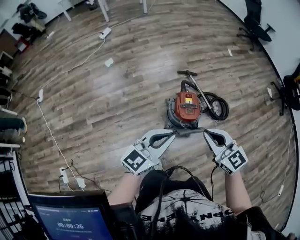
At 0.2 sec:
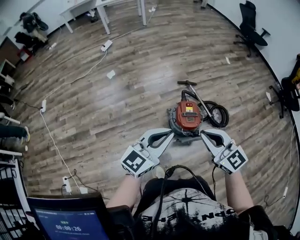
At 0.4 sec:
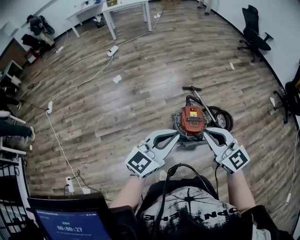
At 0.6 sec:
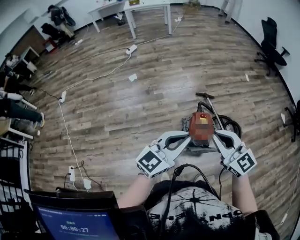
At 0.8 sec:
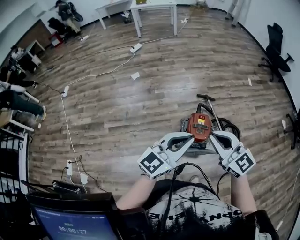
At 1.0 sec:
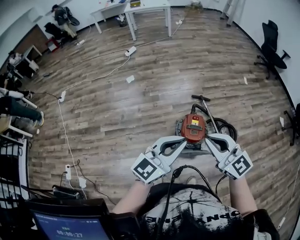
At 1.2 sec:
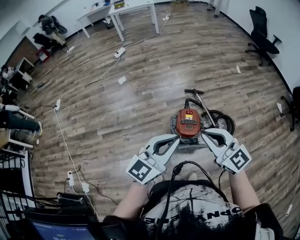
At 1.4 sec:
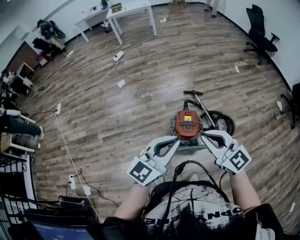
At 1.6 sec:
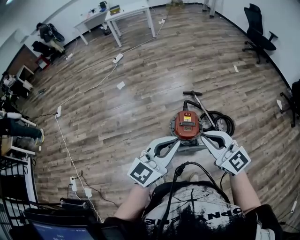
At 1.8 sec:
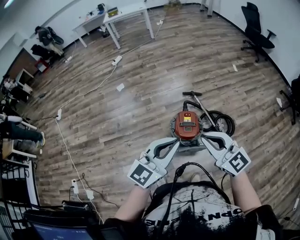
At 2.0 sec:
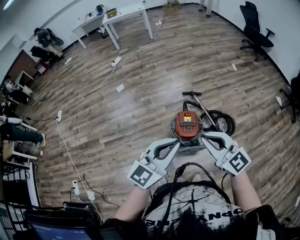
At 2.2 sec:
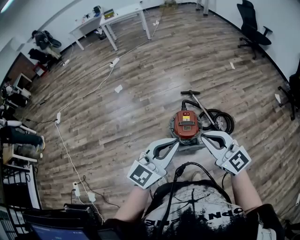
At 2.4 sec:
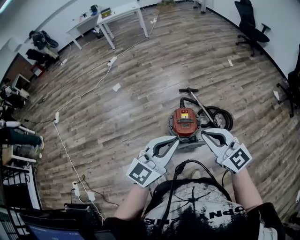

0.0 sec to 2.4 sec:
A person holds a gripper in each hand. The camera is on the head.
0.0 sec to 1.2 sec: The left gripper shifts approximately 15 cm to the right and upward. Meanwhile the right gripper is displaced upward and to the right by roughly 10 cm.
1.2 sec to 2.4 sec: The grippers move only a little.

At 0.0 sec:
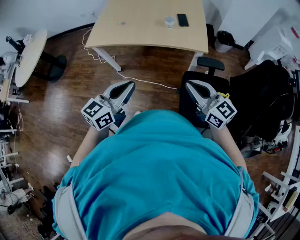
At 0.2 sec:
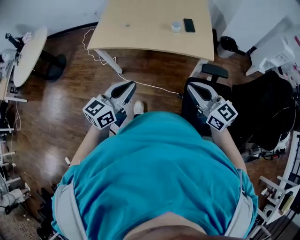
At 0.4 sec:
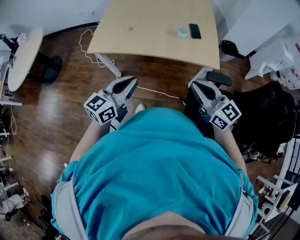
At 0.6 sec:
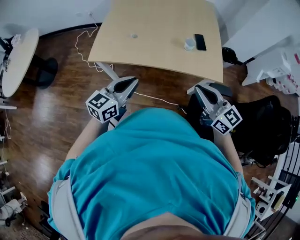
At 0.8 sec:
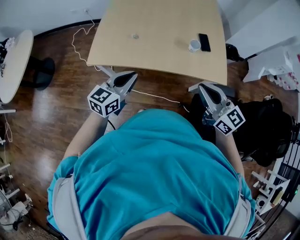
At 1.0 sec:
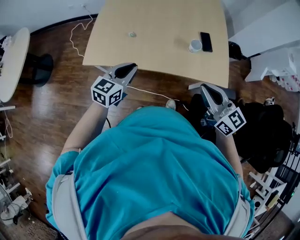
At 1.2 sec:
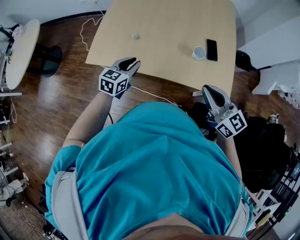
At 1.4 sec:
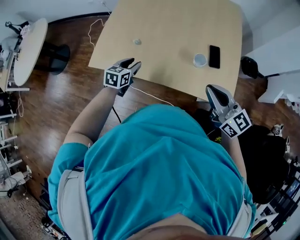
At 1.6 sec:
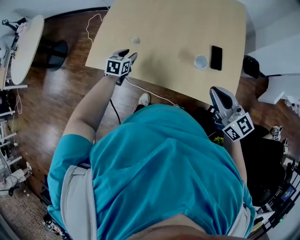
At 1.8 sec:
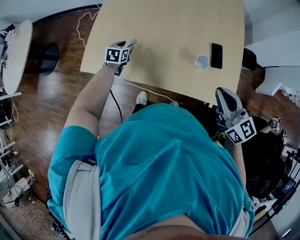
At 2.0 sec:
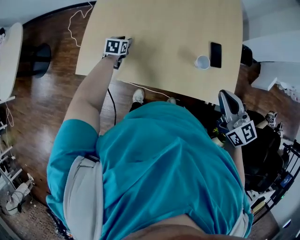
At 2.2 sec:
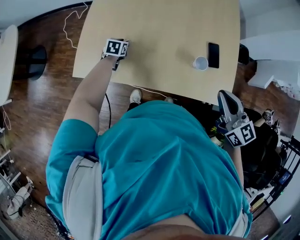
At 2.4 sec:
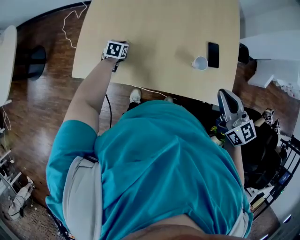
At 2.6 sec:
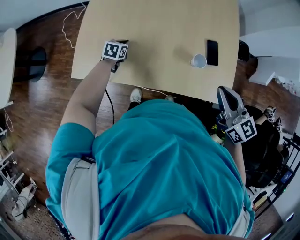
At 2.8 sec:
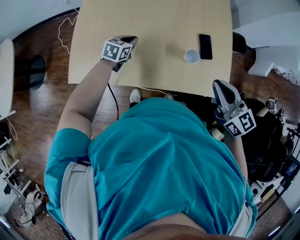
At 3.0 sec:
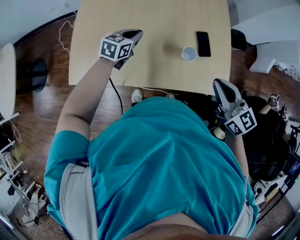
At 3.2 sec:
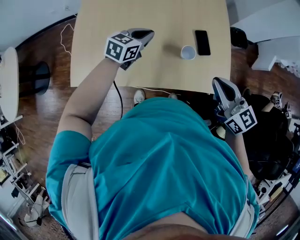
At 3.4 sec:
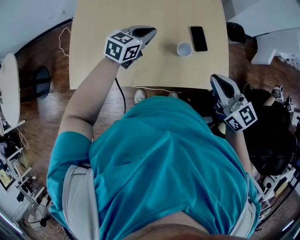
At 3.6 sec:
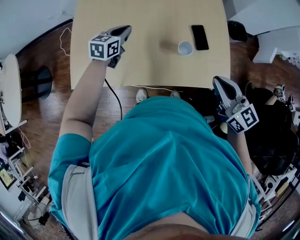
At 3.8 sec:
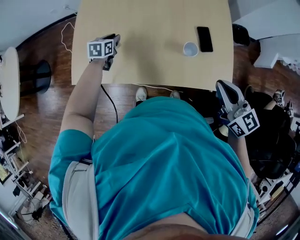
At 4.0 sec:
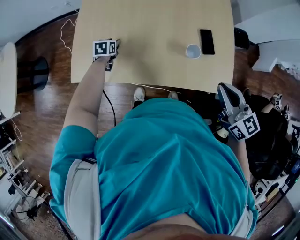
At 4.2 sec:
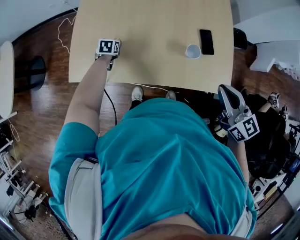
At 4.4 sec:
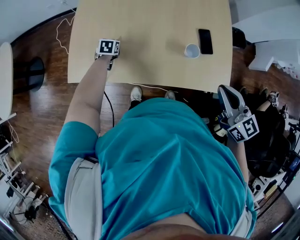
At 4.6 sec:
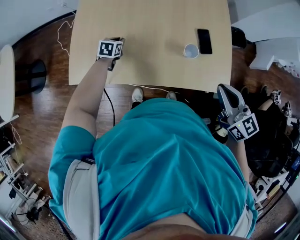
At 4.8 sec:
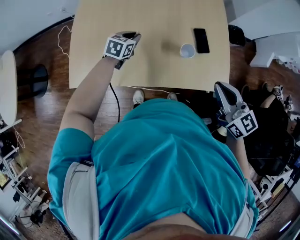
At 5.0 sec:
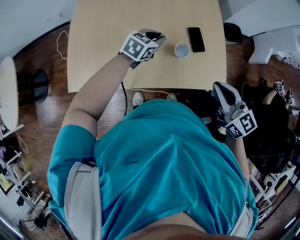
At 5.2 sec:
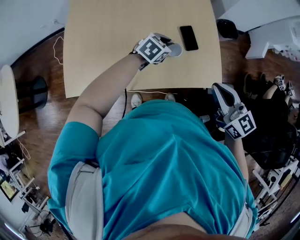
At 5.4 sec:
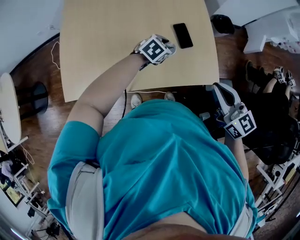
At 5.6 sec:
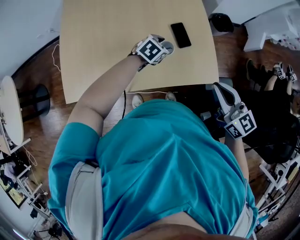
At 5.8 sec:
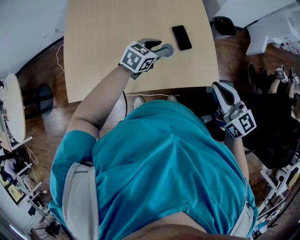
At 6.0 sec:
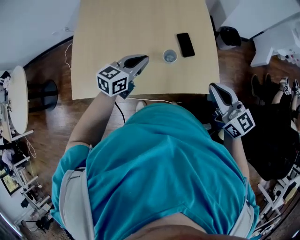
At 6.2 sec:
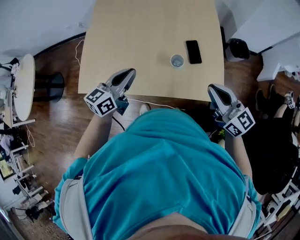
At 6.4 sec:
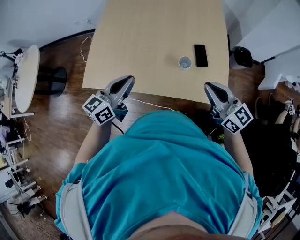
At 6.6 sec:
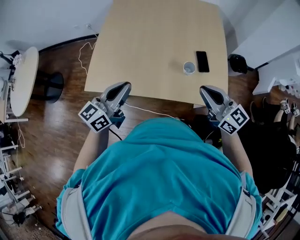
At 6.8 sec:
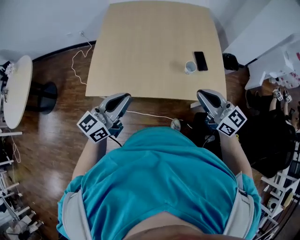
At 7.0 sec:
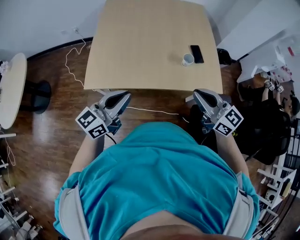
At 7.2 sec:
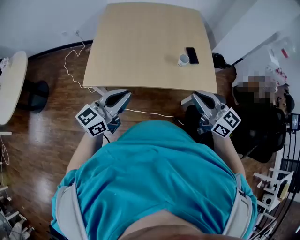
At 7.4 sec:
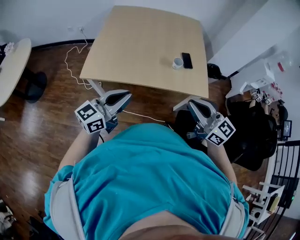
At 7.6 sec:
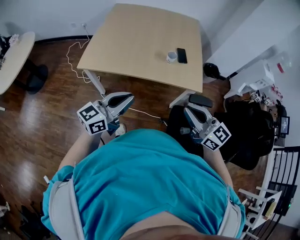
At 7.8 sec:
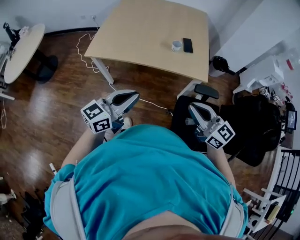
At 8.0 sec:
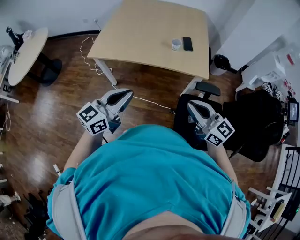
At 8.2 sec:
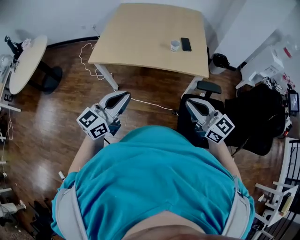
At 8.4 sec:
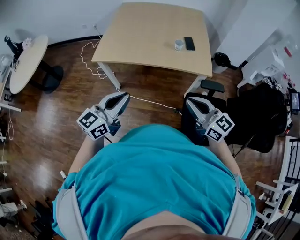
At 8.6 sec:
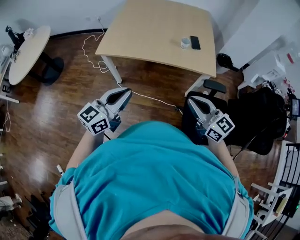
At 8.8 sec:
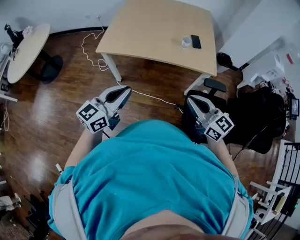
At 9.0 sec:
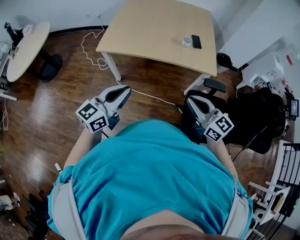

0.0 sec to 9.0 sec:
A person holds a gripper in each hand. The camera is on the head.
0.0 sec to 1.6 sec: The left gripper is displaced forward and downward by roughly 60 cm, tilts its fingers approximately 40 degrees downward, and opens up. The right gripper travels forward by some 40 cm.
1.6 sec to 3.0 sec: The left gripper shifts roughly 20 cm to the right, forward and upward, swivels roughly 30 degrees, and closes.
3.0 sec to 4.4 sec: The left gripper shifts about 25 cm downward and to the left, rotates about 30 degrees, and opens, then closes once more.
4.4 sec to 6.0 sec: The left gripper goes up and down, roughly 25 cm each way, reversing 2 times, tilts its fingers some 40 degrees upward, and opens, then closes again. The right gripper changes place by approximately 10 cm.
6.0 sec to 7.6 sec: The left gripper goes approximately 40 cm backward, and turns by approximately 30 degrees, while the right gripper travels backward and to the left by some 30 cm, and turns by approximately 20 degrees.
7.6 sec to 9.0 sec: The two grippers go about 15 cm backward and to the left.

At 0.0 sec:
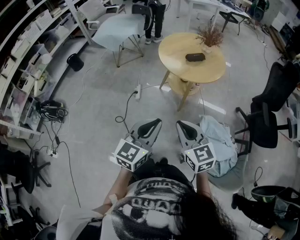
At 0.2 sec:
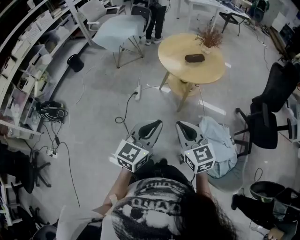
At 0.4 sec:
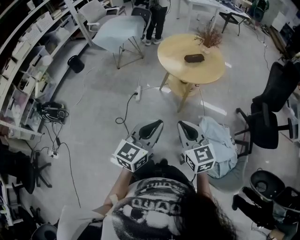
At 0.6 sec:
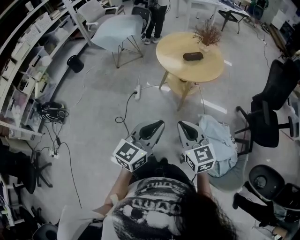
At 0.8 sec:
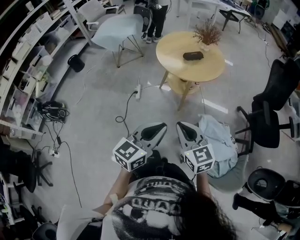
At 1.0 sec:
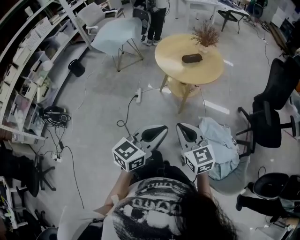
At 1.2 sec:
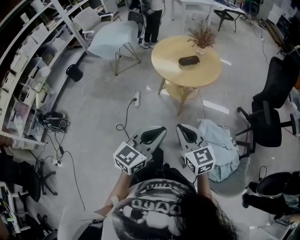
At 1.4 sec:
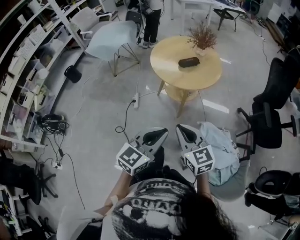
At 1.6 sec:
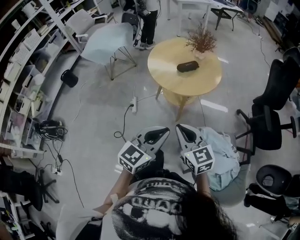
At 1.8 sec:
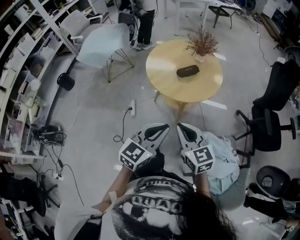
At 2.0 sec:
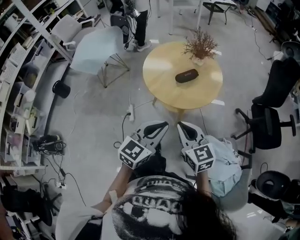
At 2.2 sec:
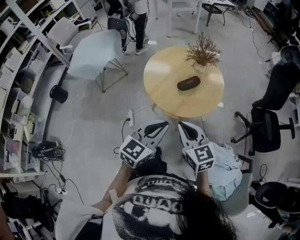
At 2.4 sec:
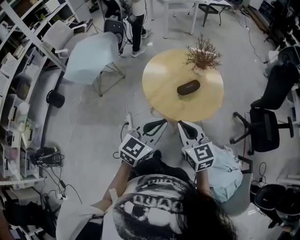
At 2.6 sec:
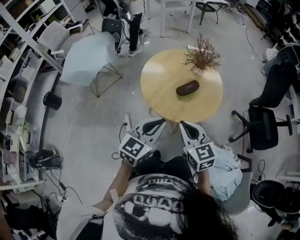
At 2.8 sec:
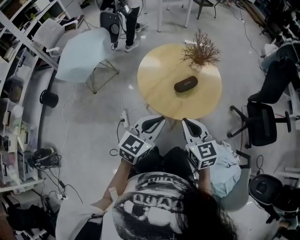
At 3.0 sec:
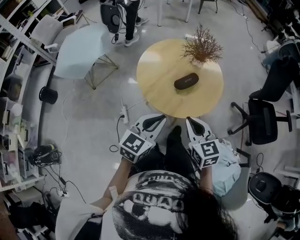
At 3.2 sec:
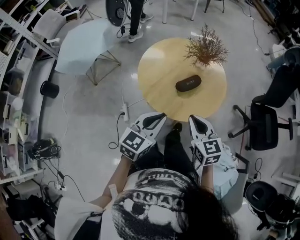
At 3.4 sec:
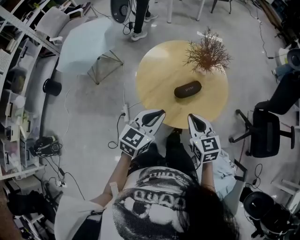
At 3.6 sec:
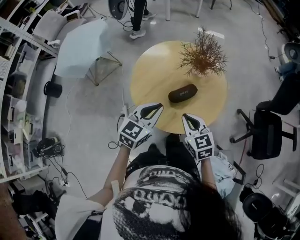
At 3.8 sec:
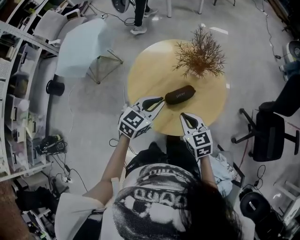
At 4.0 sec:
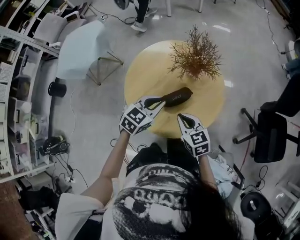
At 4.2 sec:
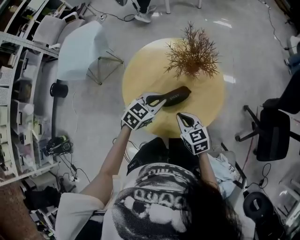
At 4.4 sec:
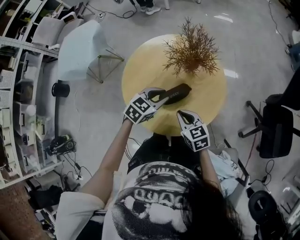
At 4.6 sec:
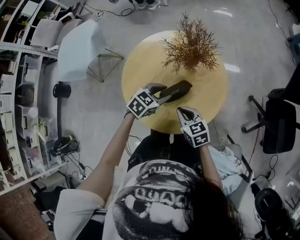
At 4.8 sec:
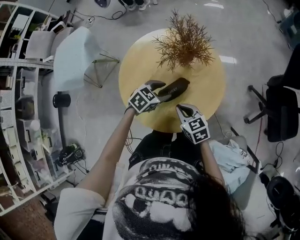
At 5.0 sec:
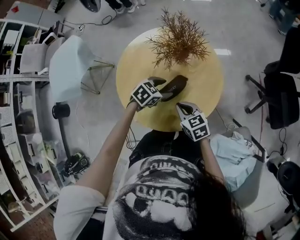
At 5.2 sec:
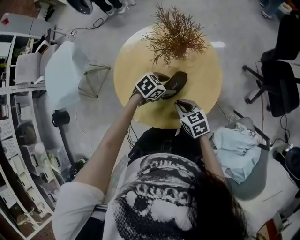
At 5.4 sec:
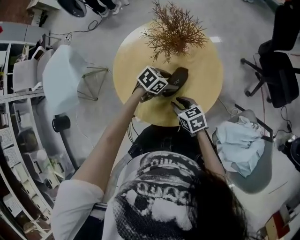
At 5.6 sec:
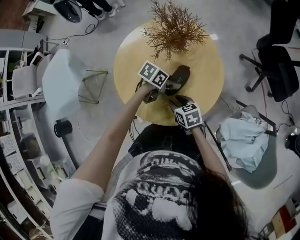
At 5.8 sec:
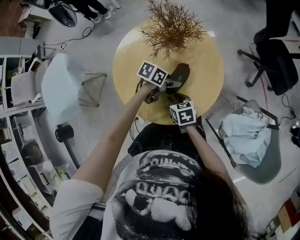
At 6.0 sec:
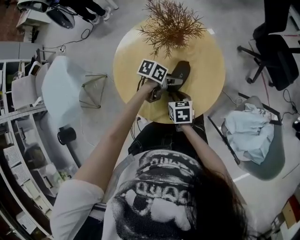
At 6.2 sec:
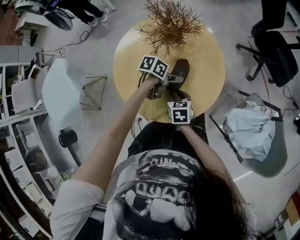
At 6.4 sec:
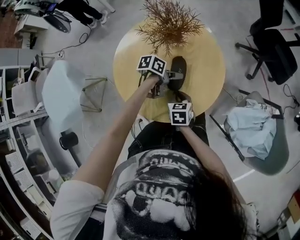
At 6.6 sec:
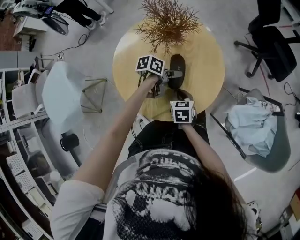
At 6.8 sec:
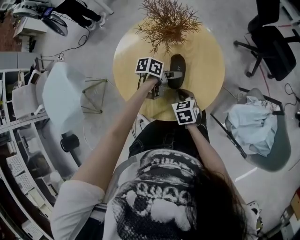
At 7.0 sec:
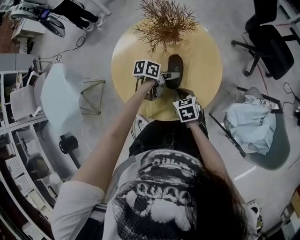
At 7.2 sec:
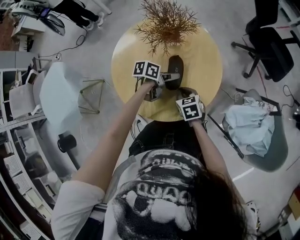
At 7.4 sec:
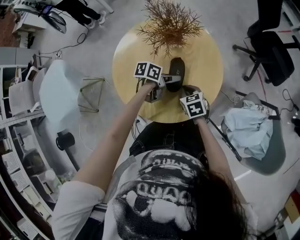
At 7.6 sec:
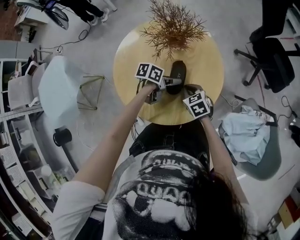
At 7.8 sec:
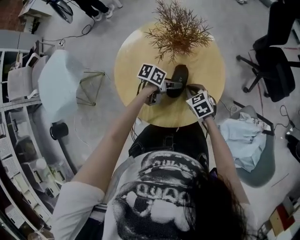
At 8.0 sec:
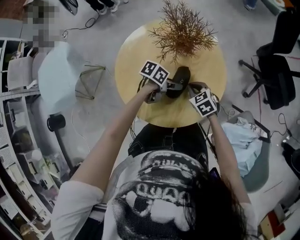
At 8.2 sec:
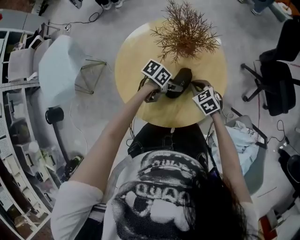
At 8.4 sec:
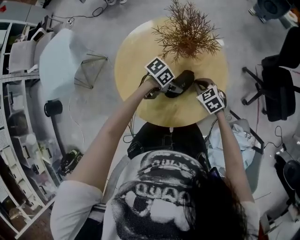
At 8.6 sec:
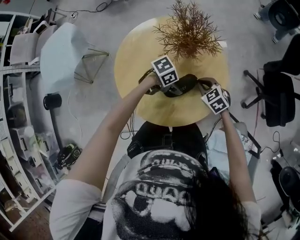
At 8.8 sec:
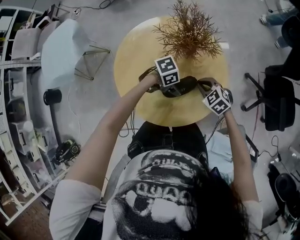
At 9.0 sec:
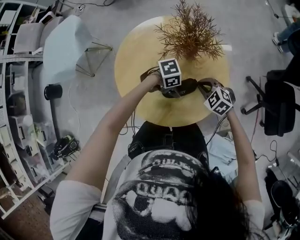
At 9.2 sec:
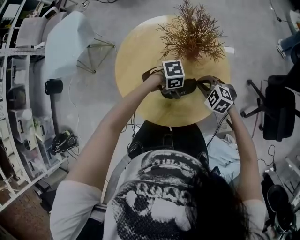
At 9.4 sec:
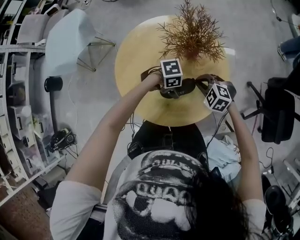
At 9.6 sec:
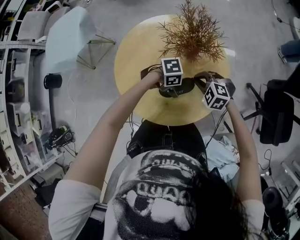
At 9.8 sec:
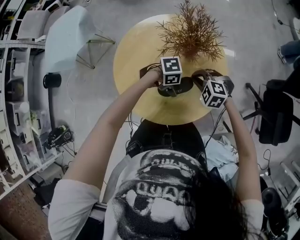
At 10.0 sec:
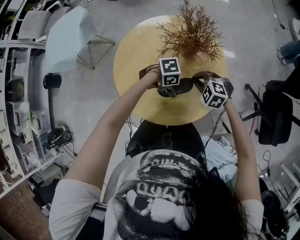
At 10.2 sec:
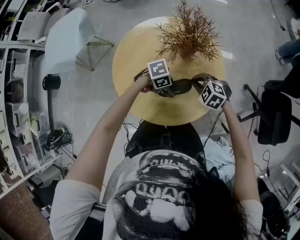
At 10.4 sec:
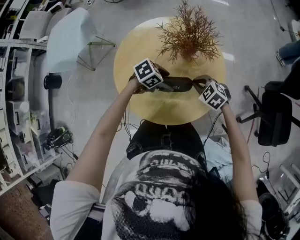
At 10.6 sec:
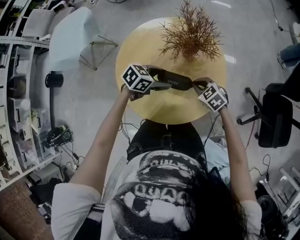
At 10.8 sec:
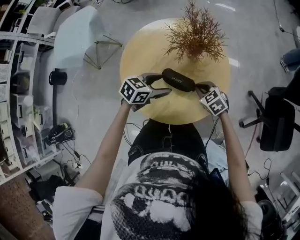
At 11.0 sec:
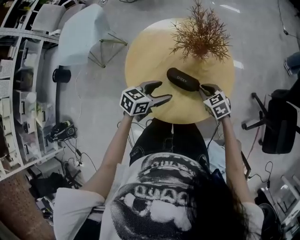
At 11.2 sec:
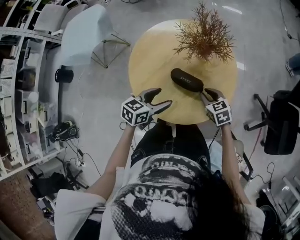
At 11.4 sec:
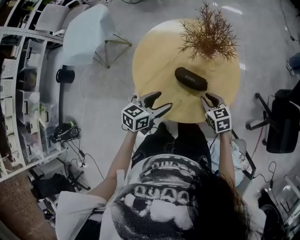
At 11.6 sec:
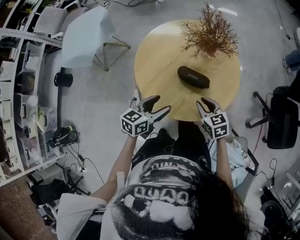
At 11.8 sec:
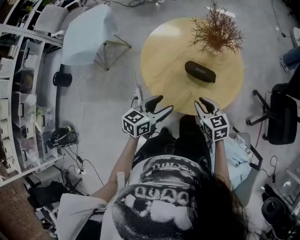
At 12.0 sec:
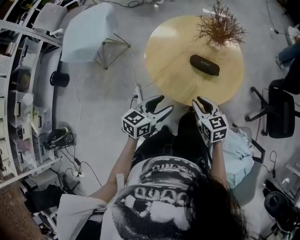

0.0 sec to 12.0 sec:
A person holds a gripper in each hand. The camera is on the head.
0.0 sec to 1.6 sec: The left gripper travels forward and to the right by about 10 cm. The right gripper goes some 10 cm forward.
1.6 sec to 3.0 sec: The grippers both shift forward by roughly 25 cm.
3.0 sec to 4.4 sec: Both grippers travel together forward, downward and to the right, some 25 cm. The right gripper swivels some 20 degrees, while the left gripper turns by about 30 degrees.
4.4 sec to 6.0 sec: Both grippers travel together downward, some 10 cm. The right gripper changes its angle by about 50 degrees, and opens its fingers; the left gripper changes its angle by approximately 50 degrees, and opens its fingers.
6.0 sec to 7.6 sec: The right gripper heads forward, covering approximately 5 cm, rotates some 30 degrees, and closes.
7.6 sec to 9.0 sec: The right gripper moves some 10 cm, and rotates around the line of its fingers by roughly 50 degrees, counterclockwise from behind; the left gripper changes its angle by about 40 degrees.
9.0 sec to 10.4 sec: The left gripper rotates about 30 degrees.
10.4 sec to 12.0 sec: The left gripper changes place by about 30 cm, and rotates roughly 50 degrees. Meanwhile the right gripper moves about 25 cm, turns by some 40 degrees, and opens up.
